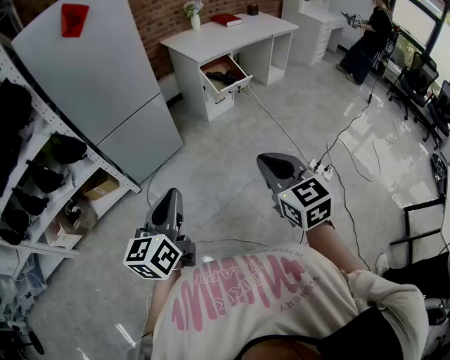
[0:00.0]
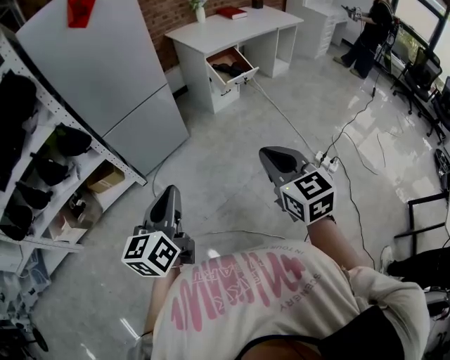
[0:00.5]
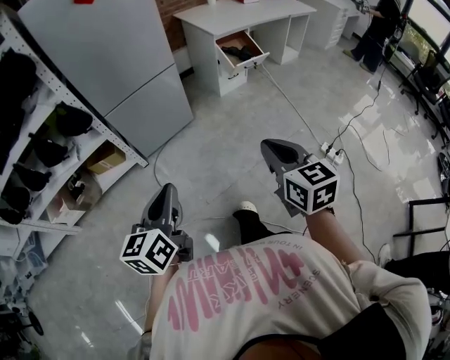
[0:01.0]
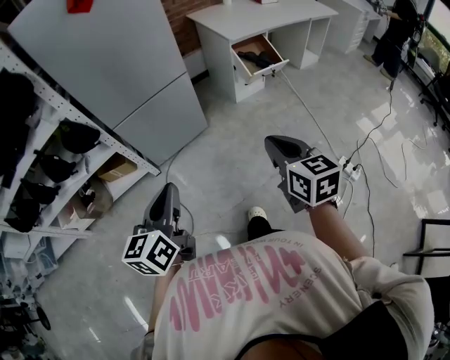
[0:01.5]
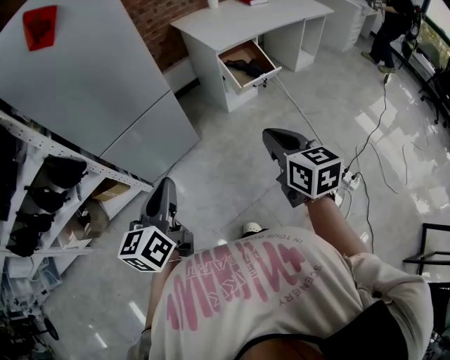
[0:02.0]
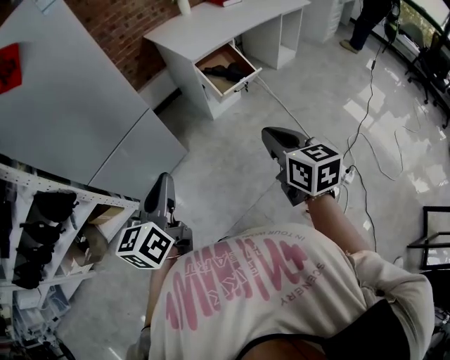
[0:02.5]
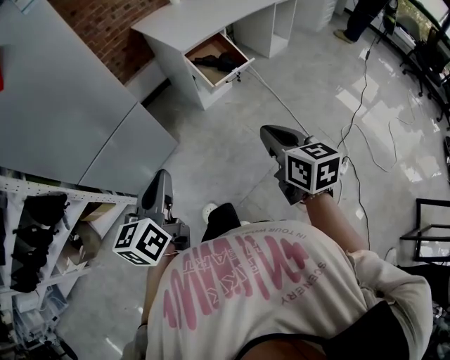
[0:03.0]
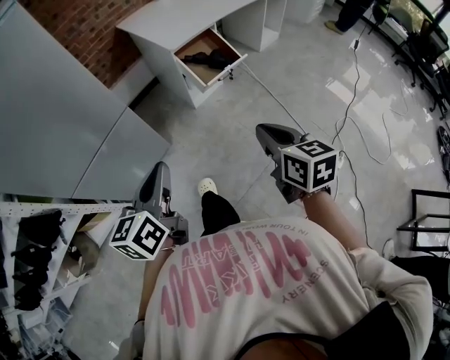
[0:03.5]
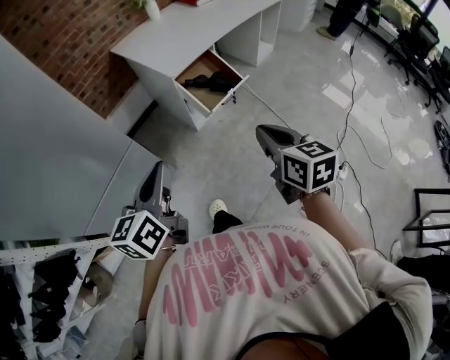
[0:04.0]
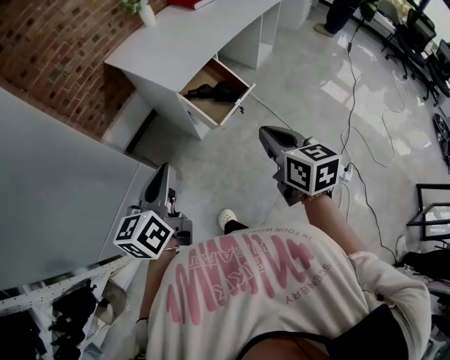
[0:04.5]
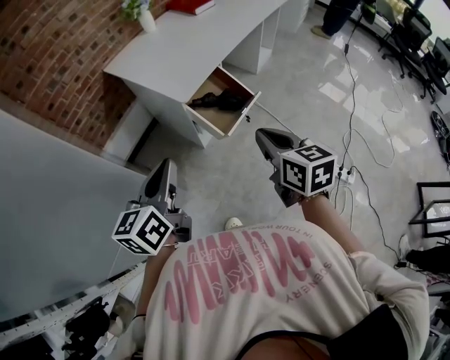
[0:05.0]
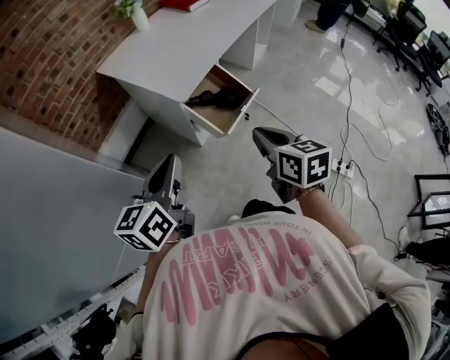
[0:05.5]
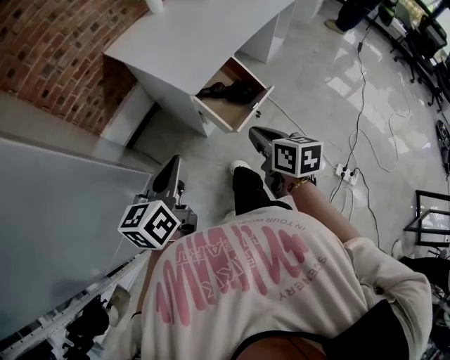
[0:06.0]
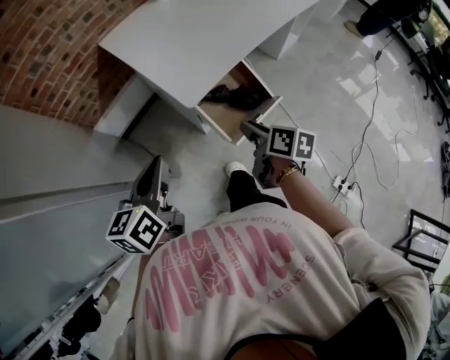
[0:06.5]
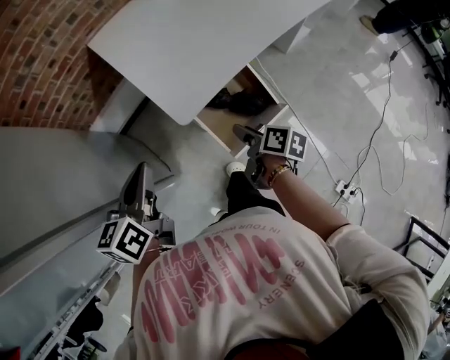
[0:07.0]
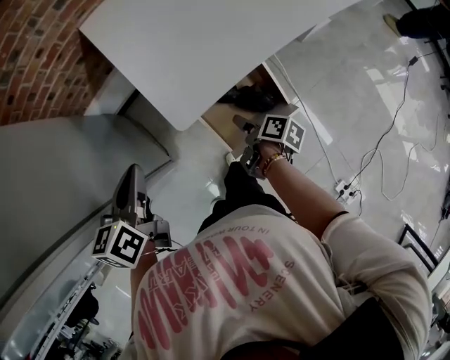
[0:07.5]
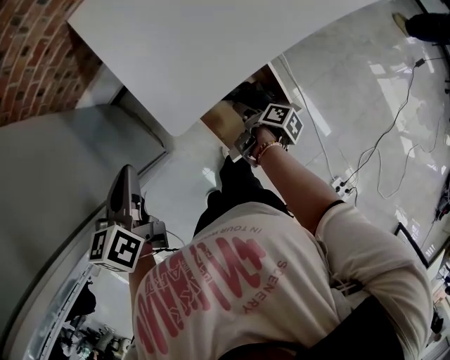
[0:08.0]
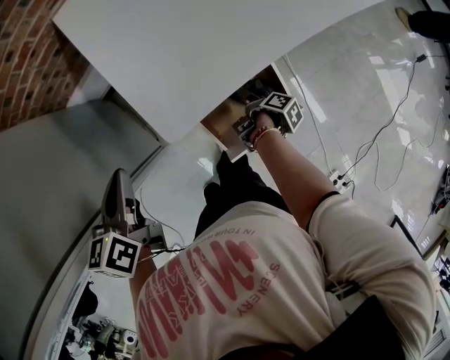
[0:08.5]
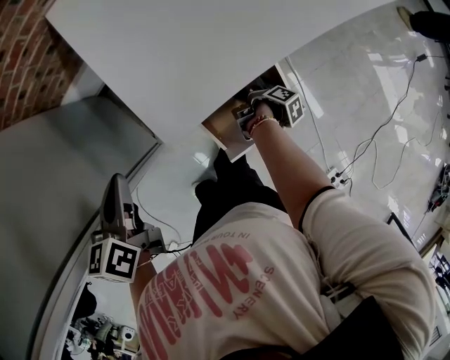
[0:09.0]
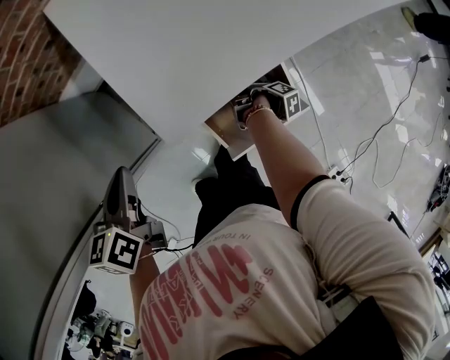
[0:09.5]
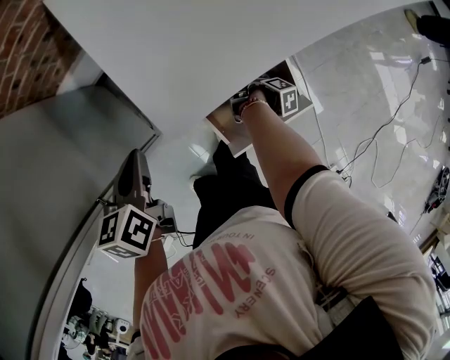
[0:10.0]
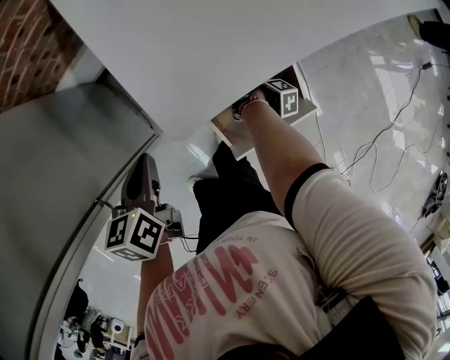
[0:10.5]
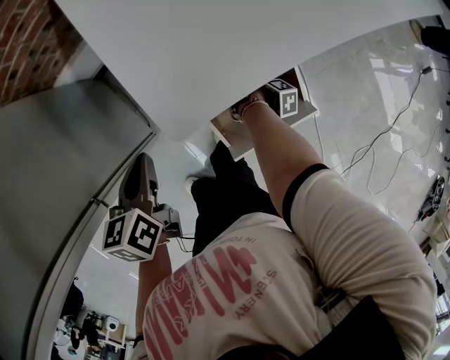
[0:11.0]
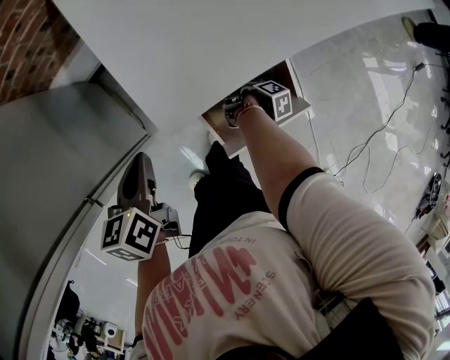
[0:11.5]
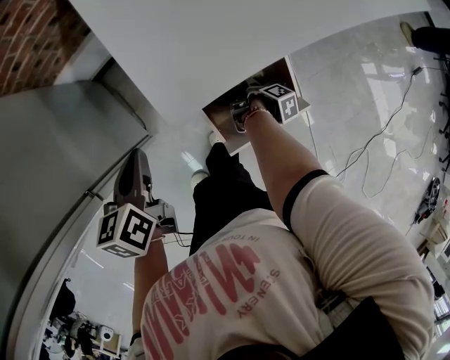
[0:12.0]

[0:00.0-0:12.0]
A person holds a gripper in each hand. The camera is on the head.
0:00.0 to 0:02.0: The two grippers go about 25 cm forward.
0:02.0 to 0:04.0: The two grippers go some 25 cm forward.
0:04.0 to 0:06.0: The right gripper moves forward, to the left and downward, some 25 cm. Meanwhile the left gripper goes roughly 20 cm forward.
0:06.0 to 0:08.0: The left gripper travels forward by roughly 25 cm, and changes its angle by some 30 degrees, while the right gripper moves downward and forward, about 40 cm, rotates around the line of its fingers by roughly 60 degrees, clockwise from behind, and opens.
0:08.0 to 0:10.0: The grippers both shift downward by roughly 10 cm. The right gripper turns by some 30 degrees.
0:10.0 to 0:12.0: The grippers make only small movements.

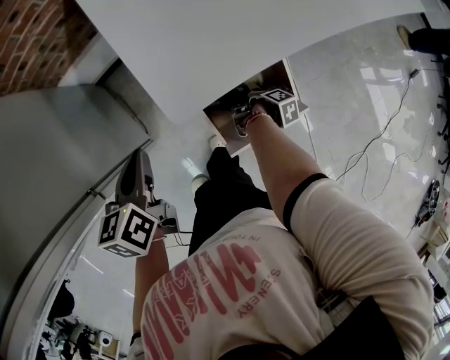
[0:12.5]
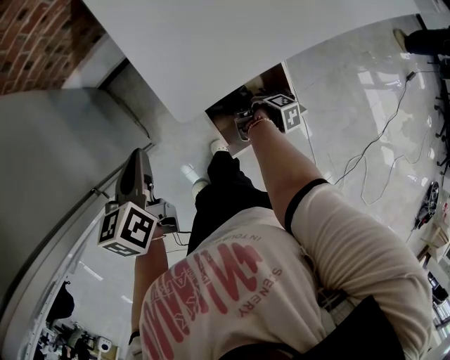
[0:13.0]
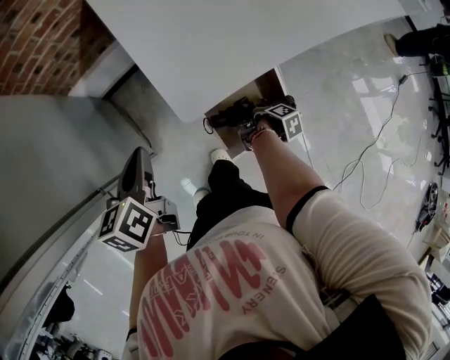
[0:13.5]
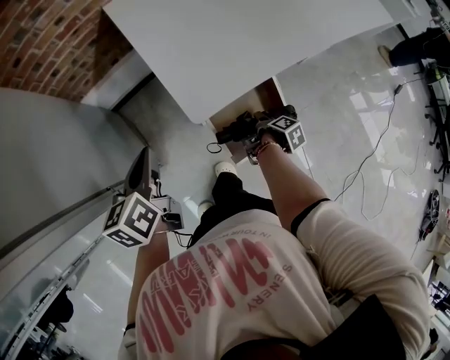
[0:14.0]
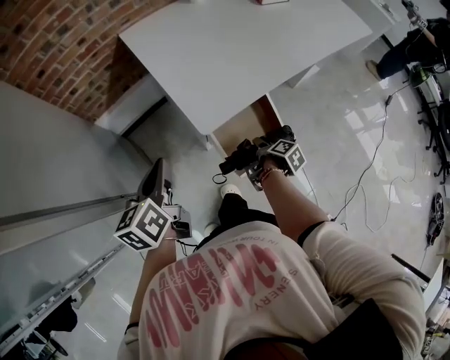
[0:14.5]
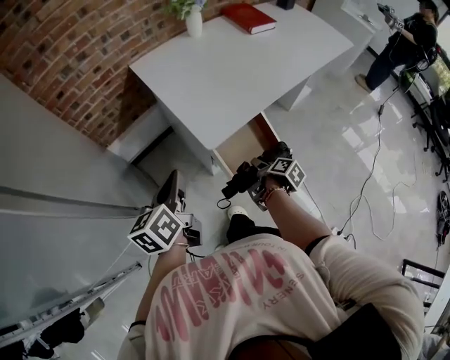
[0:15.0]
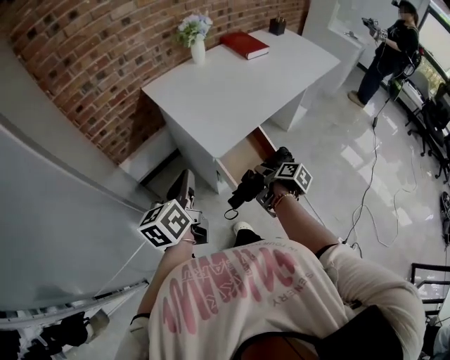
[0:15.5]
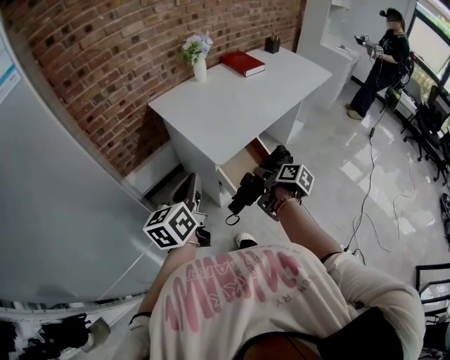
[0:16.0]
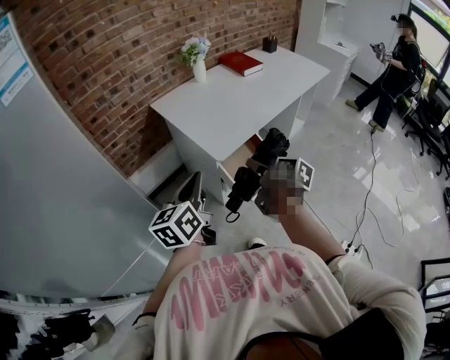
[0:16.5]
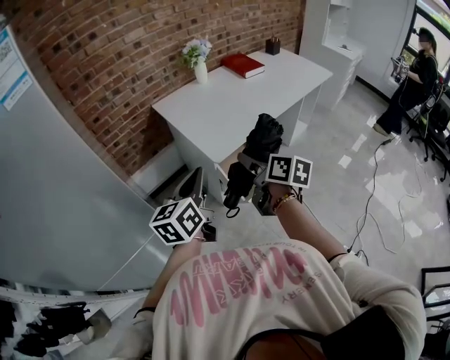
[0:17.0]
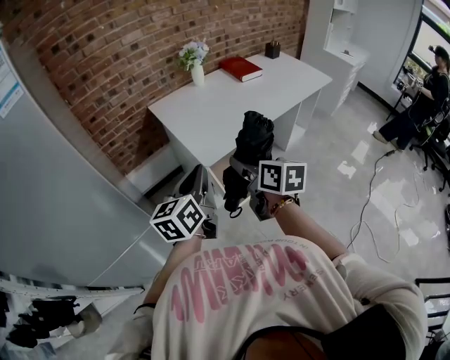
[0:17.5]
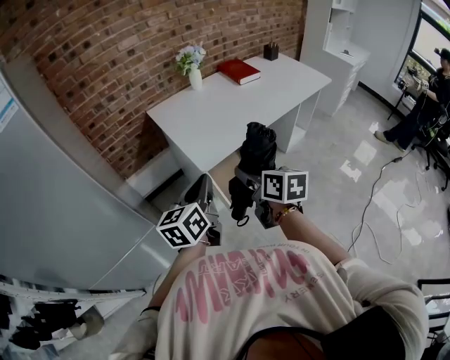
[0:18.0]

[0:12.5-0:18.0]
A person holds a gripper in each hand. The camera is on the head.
0:12.5 to 0:14.5: The left gripper goes approximately 10 cm upward; the right gripper moves upward and backward, about 20 cm.
0:14.5 to 0:16.0: The right gripper heads upward and backward, covering about 25 cm, and turns by approximately 20 degrees. Meanwhile the left gripper travels upward and backward by approximately 15 cm, and changes its angle by approximately 20 degrees.
0:16.0 to 0:18.0: The left gripper heads to the right, covering roughly 15 cm; the right gripper heads upward, covering about 15 cm, and rolls counterclockwise, seen from behind, by approximately 40 degrees.

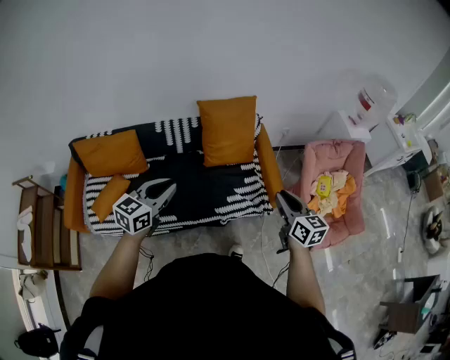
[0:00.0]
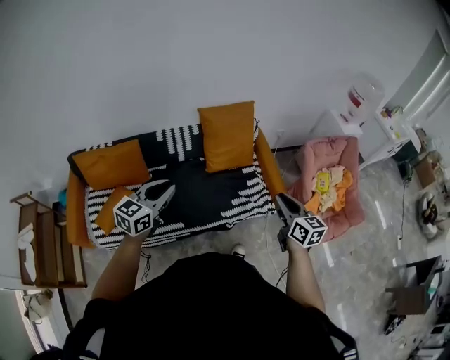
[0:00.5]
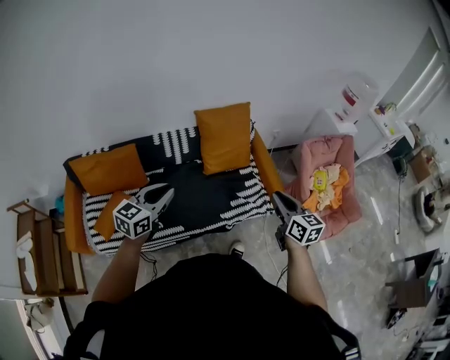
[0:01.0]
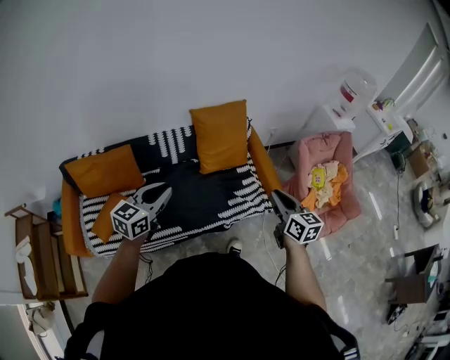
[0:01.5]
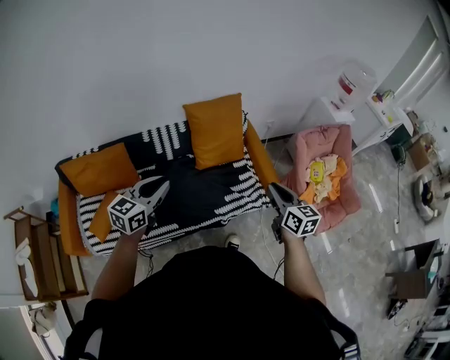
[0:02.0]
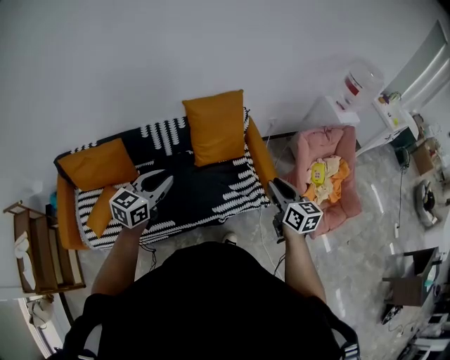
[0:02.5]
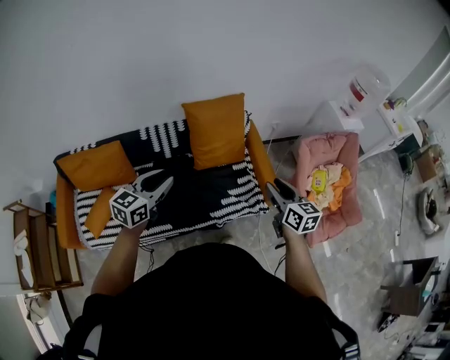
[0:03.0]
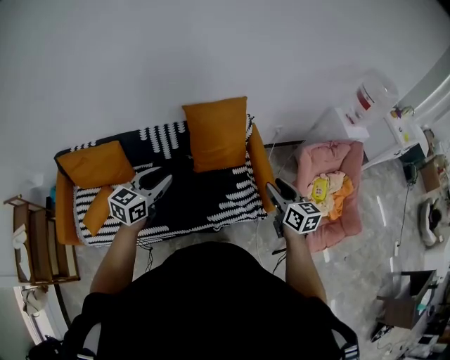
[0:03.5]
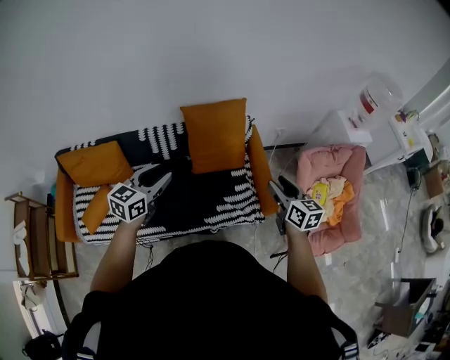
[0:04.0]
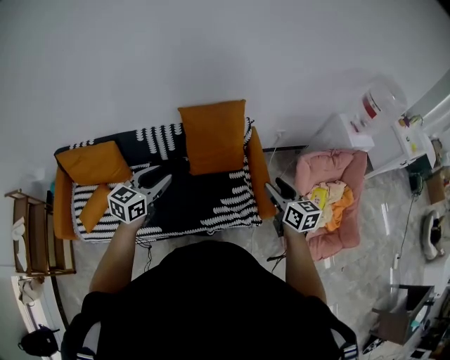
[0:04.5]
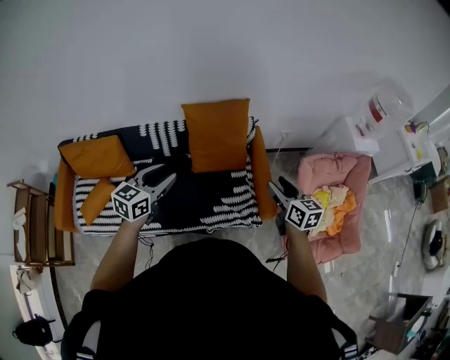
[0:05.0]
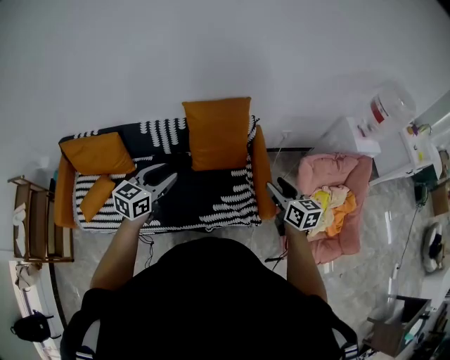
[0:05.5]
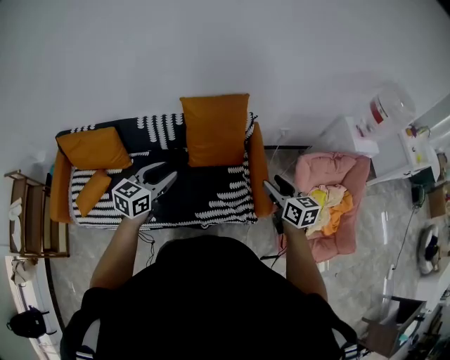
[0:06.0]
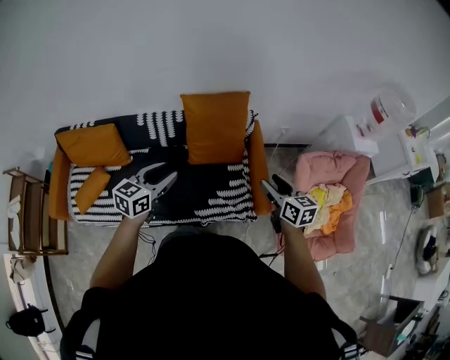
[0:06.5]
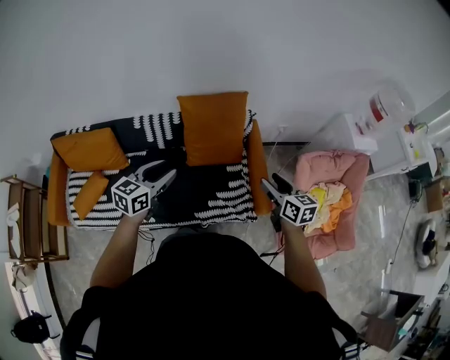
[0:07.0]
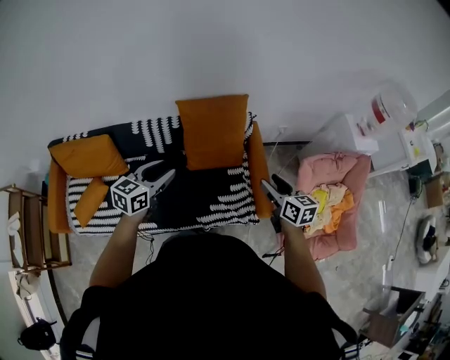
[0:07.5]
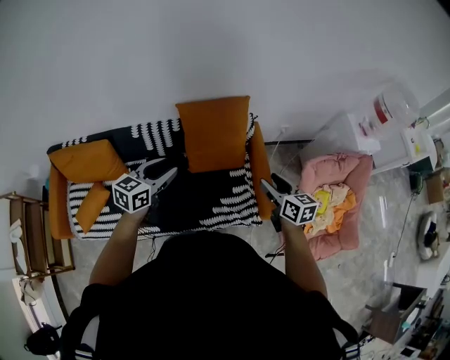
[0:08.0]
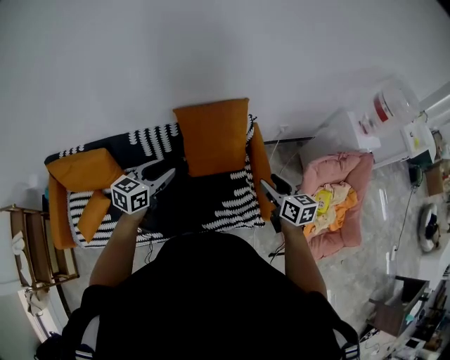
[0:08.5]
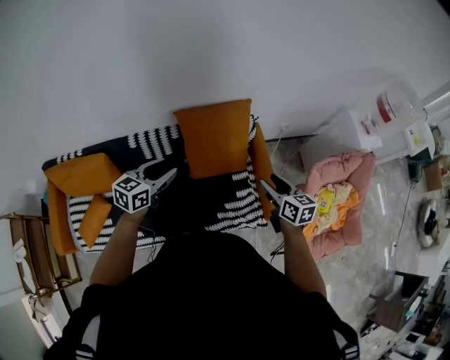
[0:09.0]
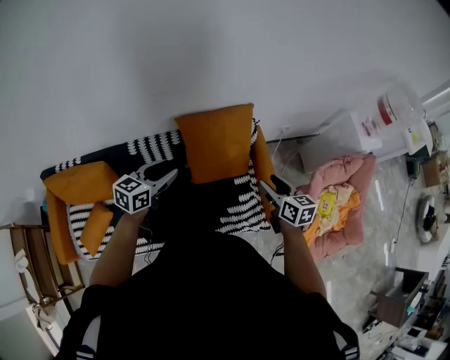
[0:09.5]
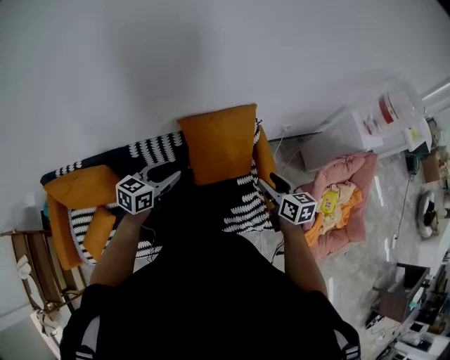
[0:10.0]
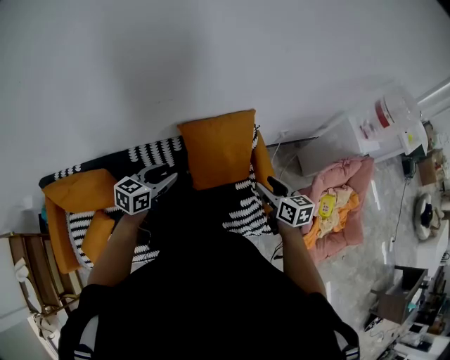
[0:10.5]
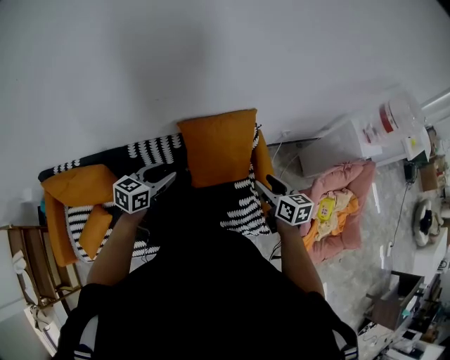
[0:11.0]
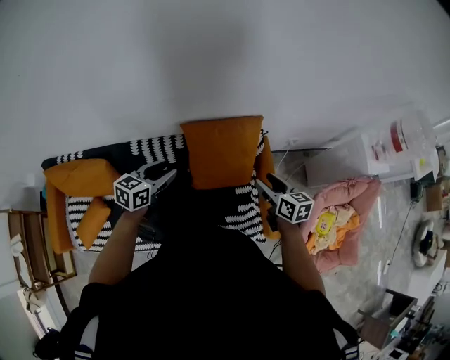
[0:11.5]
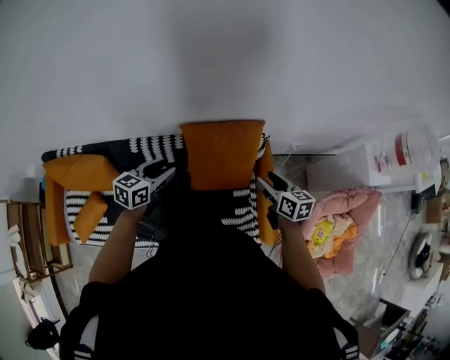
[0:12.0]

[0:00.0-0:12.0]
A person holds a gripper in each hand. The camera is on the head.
0:00.0 to 0:02.0: Both grippers move to the left, some 5 cm.
0:02.0 to 0:04.0: The two grippers go roughly 20 cm forward and to the right. The right gripper opens.
0:04.0 to 0:06.0: The left gripper travels to the right by about 5 cm. The right gripper moves about 5 cm.
0:06.0 to 0:08.0: Both grippers travel together forward, some 10 cm.
0:08.0 to 0:10.0: The left gripper travels forward and to the left by roughly 15 cm; the right gripper shifts roughly 15 cm to the left and forward.
0:10.0 to 0:12.0: The right gripper travels forward by about 10 cm; the left gripper heads forward, covering roughly 5 cm.
